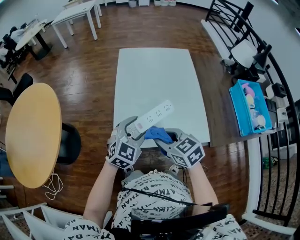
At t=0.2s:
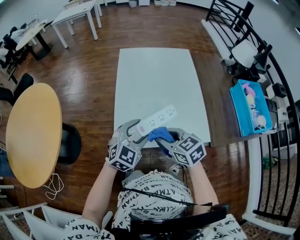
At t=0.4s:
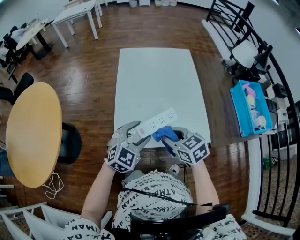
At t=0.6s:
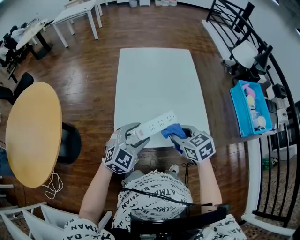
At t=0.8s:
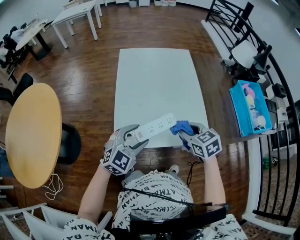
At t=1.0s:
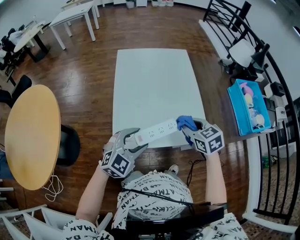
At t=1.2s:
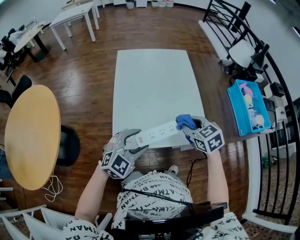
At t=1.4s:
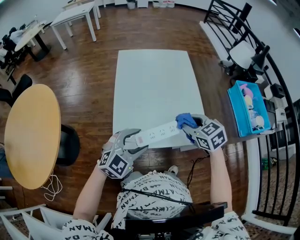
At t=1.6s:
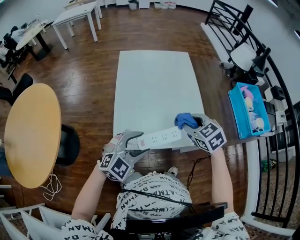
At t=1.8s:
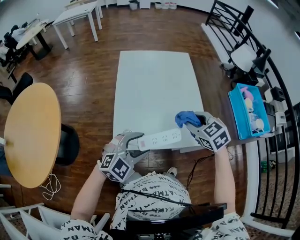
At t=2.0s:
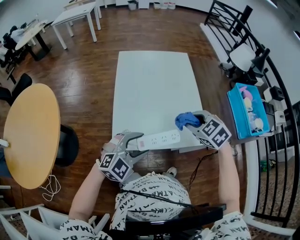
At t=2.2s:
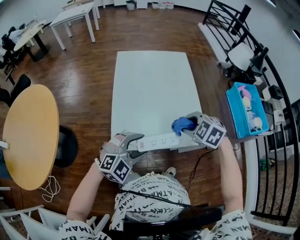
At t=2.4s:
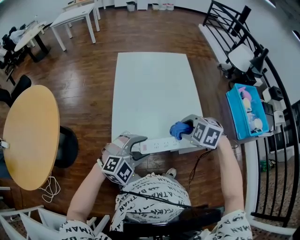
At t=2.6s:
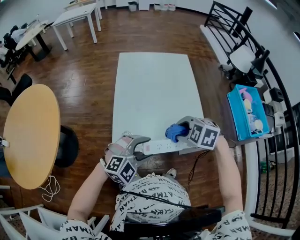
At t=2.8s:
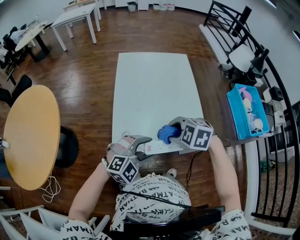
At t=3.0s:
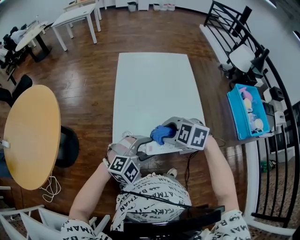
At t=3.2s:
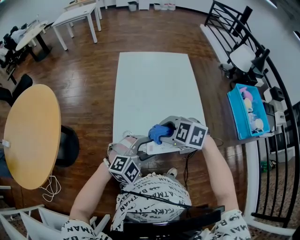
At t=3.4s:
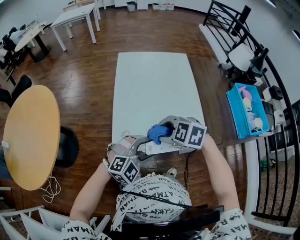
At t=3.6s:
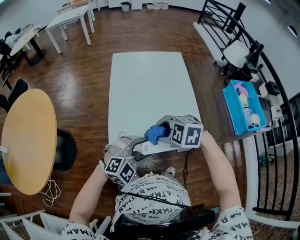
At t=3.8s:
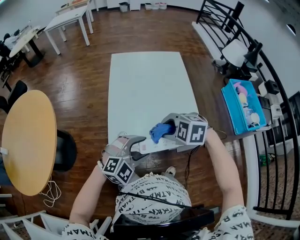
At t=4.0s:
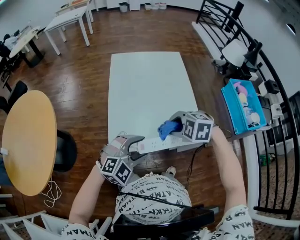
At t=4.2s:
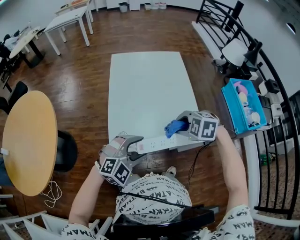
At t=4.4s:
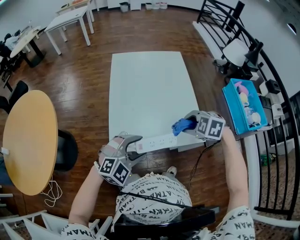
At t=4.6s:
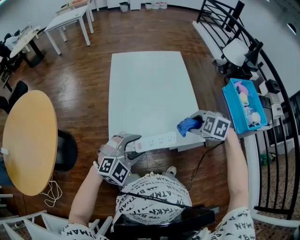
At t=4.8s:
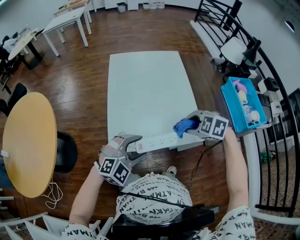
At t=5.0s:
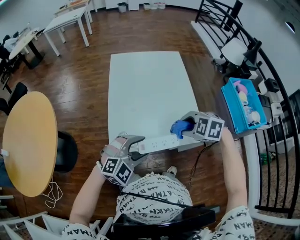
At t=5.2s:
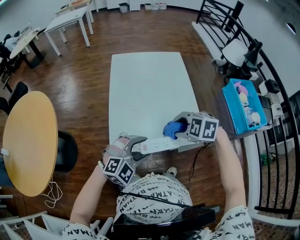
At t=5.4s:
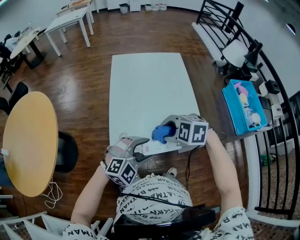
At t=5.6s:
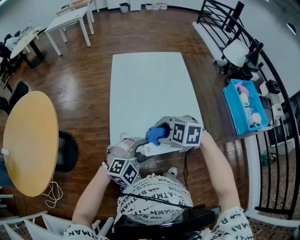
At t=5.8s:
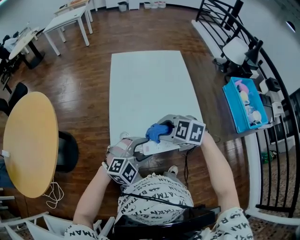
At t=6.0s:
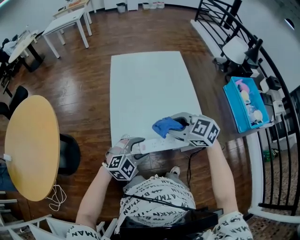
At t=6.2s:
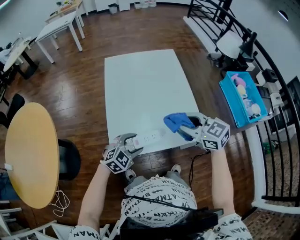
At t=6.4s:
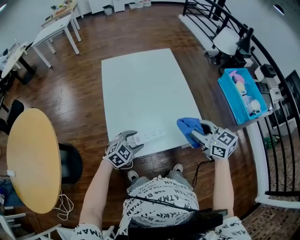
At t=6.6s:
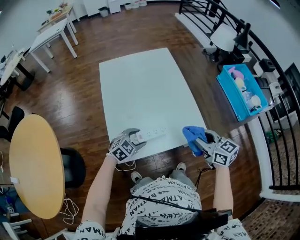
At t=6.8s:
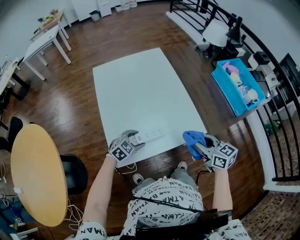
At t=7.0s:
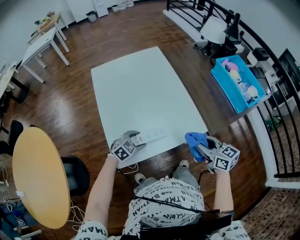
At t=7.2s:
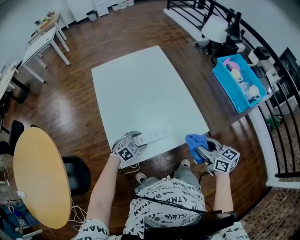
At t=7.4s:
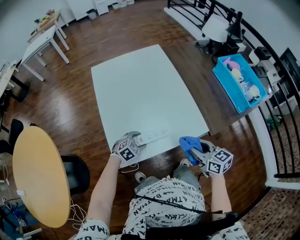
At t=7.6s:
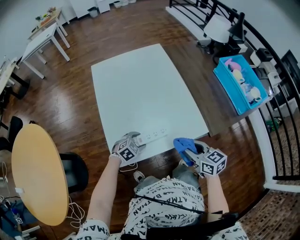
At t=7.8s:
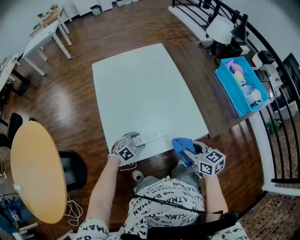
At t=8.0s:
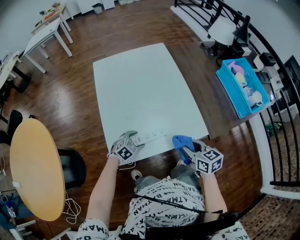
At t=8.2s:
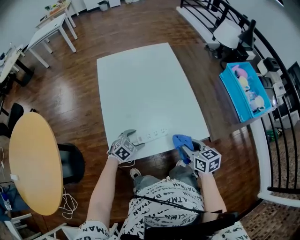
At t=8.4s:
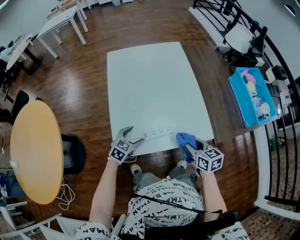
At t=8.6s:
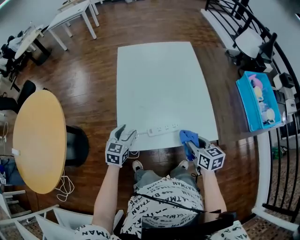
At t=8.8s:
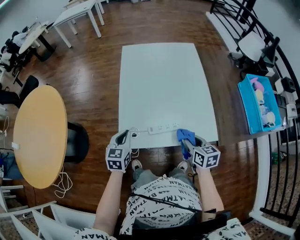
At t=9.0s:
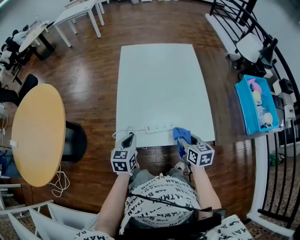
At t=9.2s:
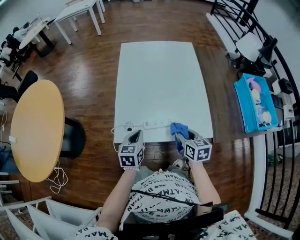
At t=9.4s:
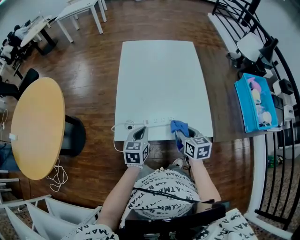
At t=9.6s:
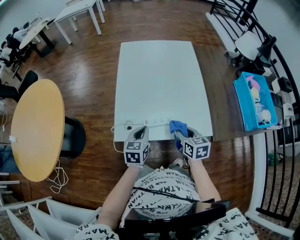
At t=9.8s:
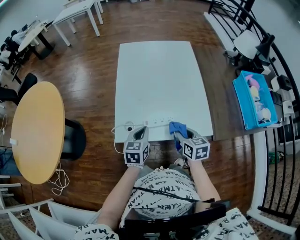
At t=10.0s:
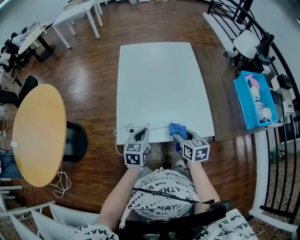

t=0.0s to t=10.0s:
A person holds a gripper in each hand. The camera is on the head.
t=0.0s to t=1.4s: The right gripper moves to the right and forward, about 15 cm, while the left gripper travels backward by approximately 5 cm.
t=1.4s to t=2.8s: The right gripper shifts some 10 cm to the left and backward, and swivels roughly 40 degrees.
t=2.8s to t=4.2s: The right gripper shifts by approximately 5 cm.
t=4.2s to t=5.8s: The right gripper shifts by some 10 cm.
t=5.8s to t=7.2s: The right gripper ends up some 20 cm from where it was, and changes its angle by about 70 degrees. Meanwhile the left gripper shifts about 20 cm downward, and rotates some 30 degrees.
t=7.2s to t=8.6s: The right gripper heads downward and to the left, covering approximately 10 cm, while the left gripper is displaced to the left and upward by roughly 15 cm, and rotates roughly 60 degrees.
t=8.6s to t=10.0s: The left gripper shifts about 10 cm to the right and backward, and closes its fingers.

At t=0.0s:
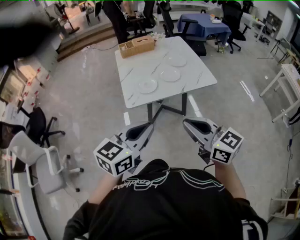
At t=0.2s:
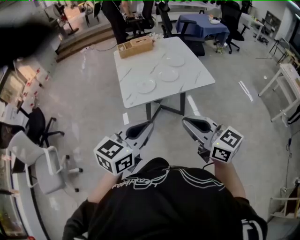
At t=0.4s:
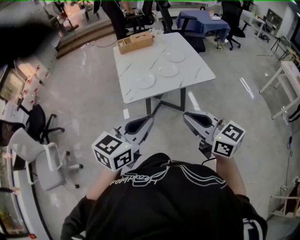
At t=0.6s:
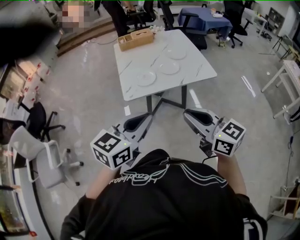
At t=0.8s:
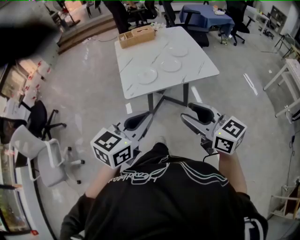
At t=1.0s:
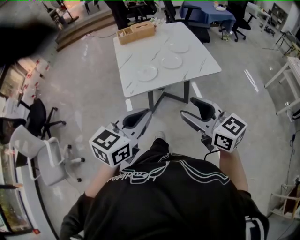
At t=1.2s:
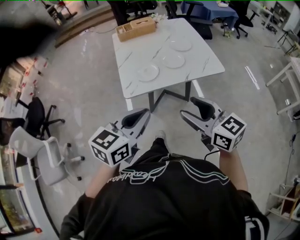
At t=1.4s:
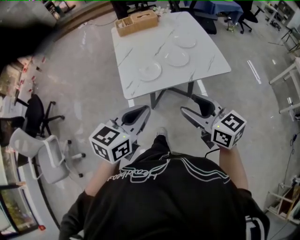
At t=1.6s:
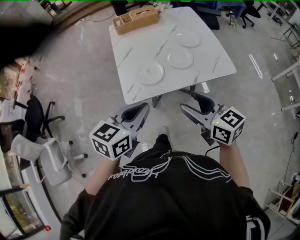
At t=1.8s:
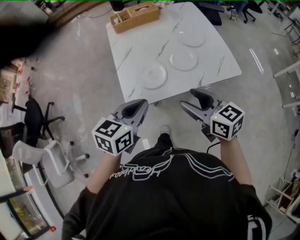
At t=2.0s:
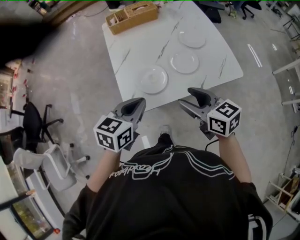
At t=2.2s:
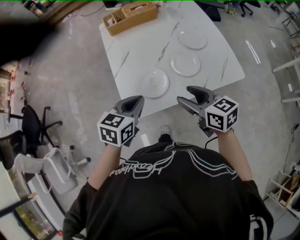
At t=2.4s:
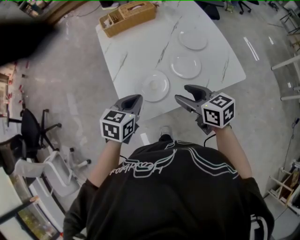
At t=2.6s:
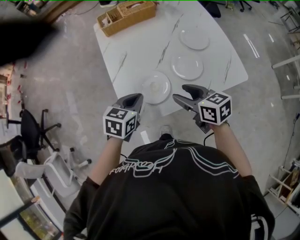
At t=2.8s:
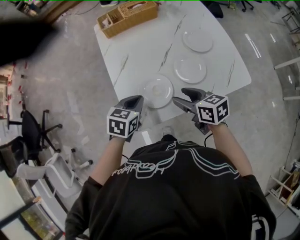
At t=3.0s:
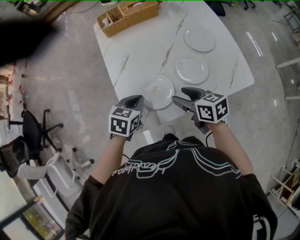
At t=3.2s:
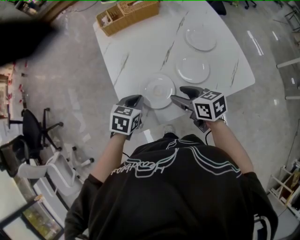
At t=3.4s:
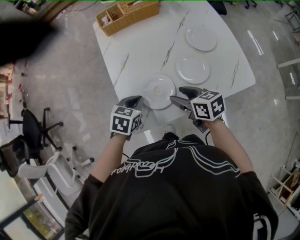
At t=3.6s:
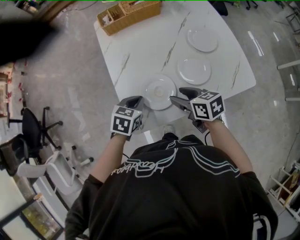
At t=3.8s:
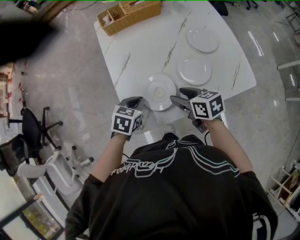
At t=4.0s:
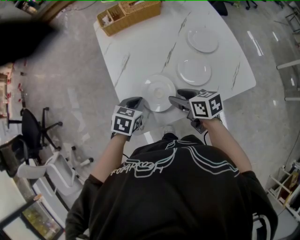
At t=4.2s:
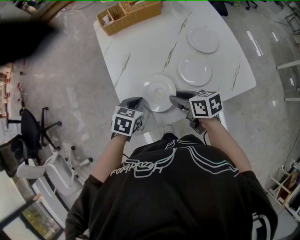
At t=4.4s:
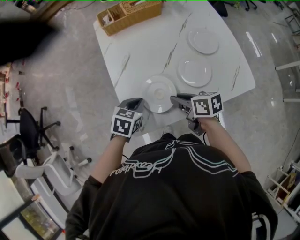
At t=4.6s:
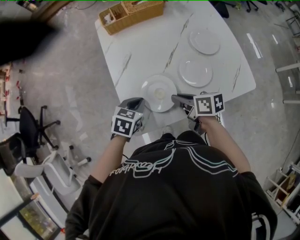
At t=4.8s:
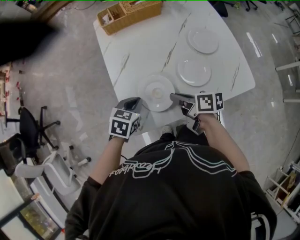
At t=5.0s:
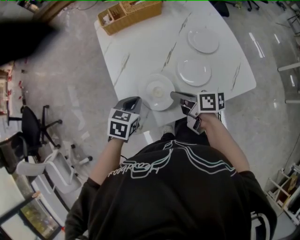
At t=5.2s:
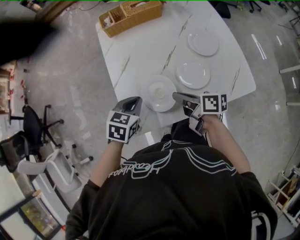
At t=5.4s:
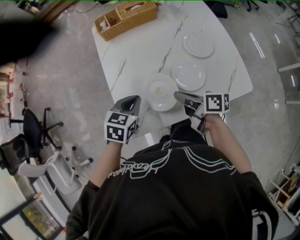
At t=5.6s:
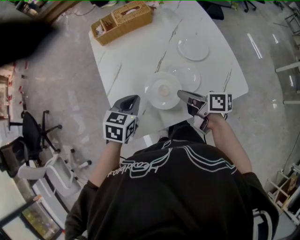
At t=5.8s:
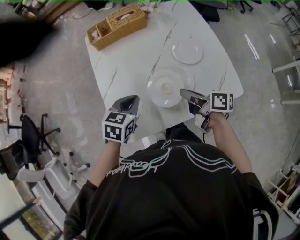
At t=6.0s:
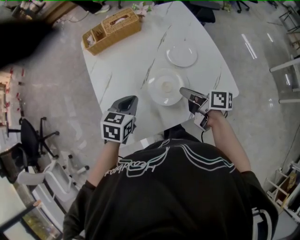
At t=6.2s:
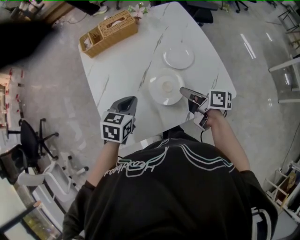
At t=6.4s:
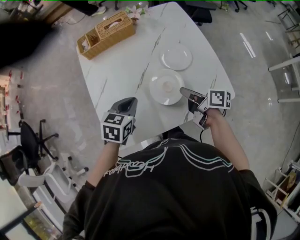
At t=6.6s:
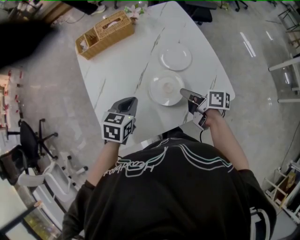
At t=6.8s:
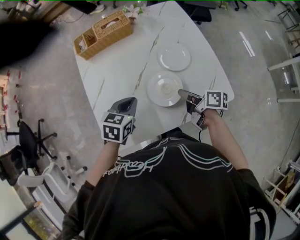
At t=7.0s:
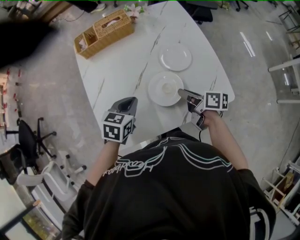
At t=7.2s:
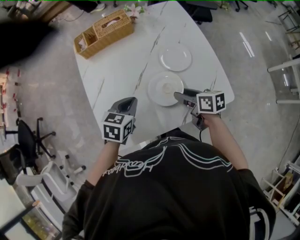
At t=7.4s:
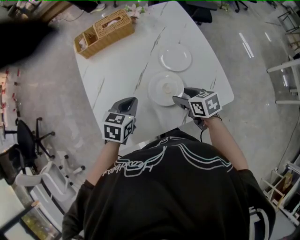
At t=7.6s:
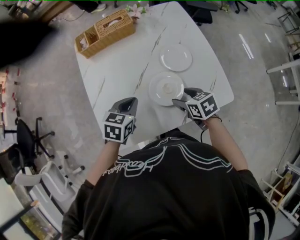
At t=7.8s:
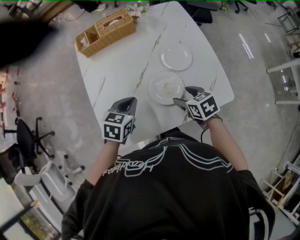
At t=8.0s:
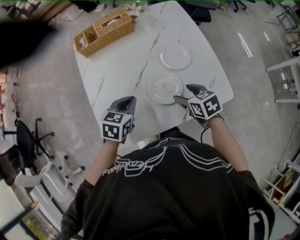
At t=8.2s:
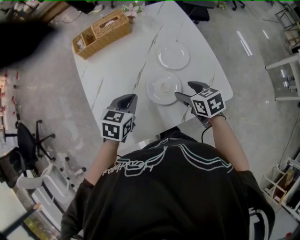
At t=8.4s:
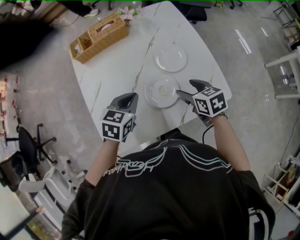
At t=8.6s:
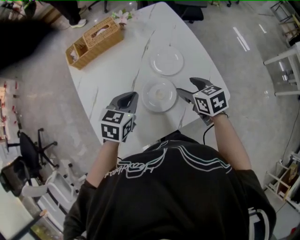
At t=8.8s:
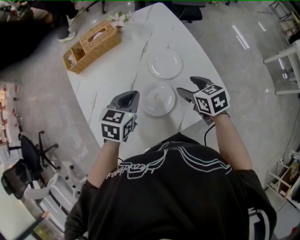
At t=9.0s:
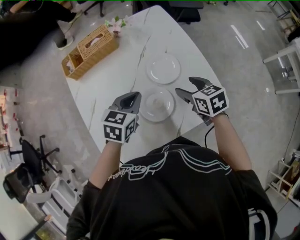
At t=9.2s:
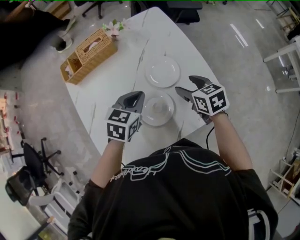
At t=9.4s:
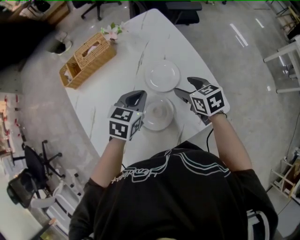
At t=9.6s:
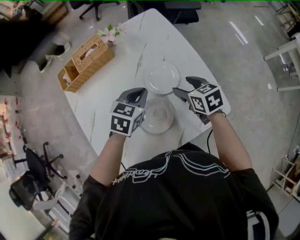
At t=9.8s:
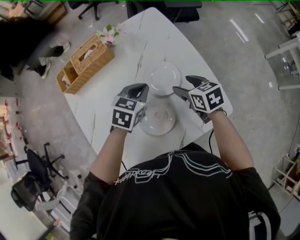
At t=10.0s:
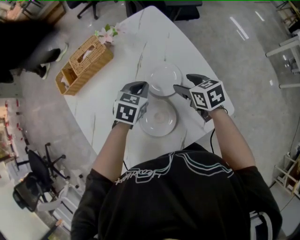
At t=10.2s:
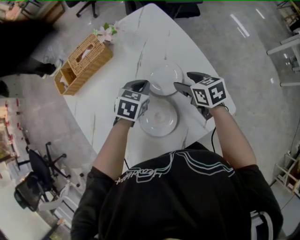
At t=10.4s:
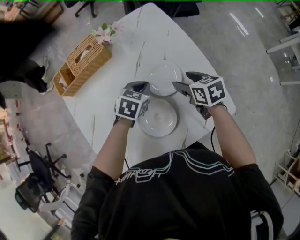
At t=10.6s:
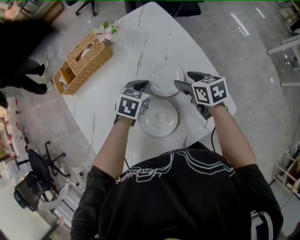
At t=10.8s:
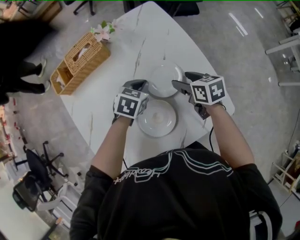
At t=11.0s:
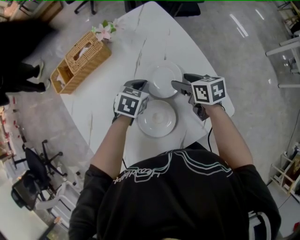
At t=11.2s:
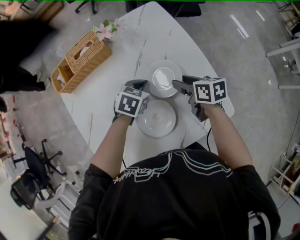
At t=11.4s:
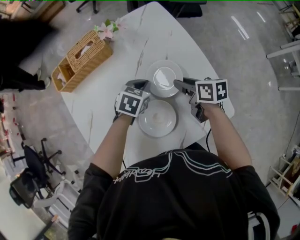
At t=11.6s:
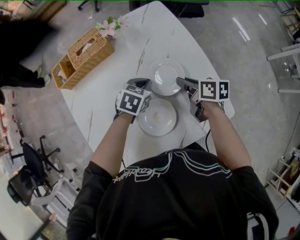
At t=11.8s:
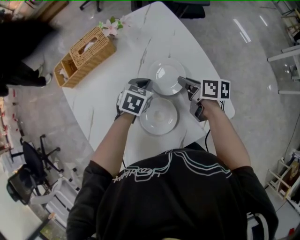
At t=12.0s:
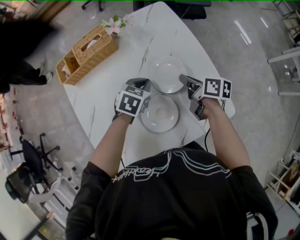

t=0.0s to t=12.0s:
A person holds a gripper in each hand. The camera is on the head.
t=0.0s to t=1.6s: Both grippers move forward and downward, roughly 20 cm. The right gripper opens its fingers.
t=1.6s to t=3.0s: The grippers both shift forward and downward by approximately 30 cm. The right gripper changes its angle by approximately 20 degrees, while the left gripper rotates approximately 30 degrees.
t=3.0s to t=4.4s: The right gripper closes up.
t=4.4s to t=6.0s: Both grippers move to the right and upward, roughly 15 cm. The right gripper rotates roughly 20 degrees.
t=6.0s to t=7.6s: The right gripper is displaced downward by approximately 5 cm, tips its fingers downward by some 30 degrees, and opens its fingers.
t=7.6s to t=9.0s: The left gripper goes roughly 10 cm to the right and forward; the right gripper shifts roughly 10 cm forward and to the right.
t=9.0s to t=10.4s: The left gripper shifts some 15 cm forward, downward and to the right, while the right gripper heads forward and downward, covering about 10 cm.
t=10.4s to t=12.0s: The right gripper changes its angle by approximately 40 degrees, and closes its fingers.

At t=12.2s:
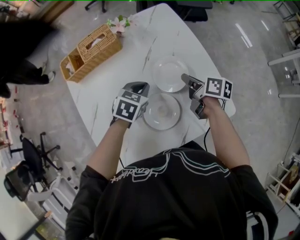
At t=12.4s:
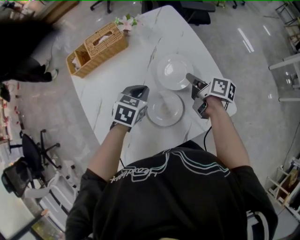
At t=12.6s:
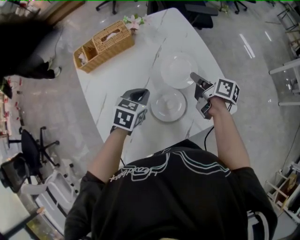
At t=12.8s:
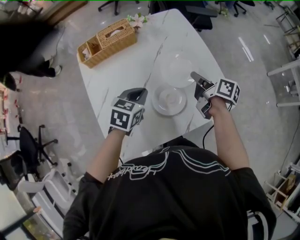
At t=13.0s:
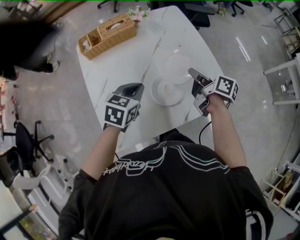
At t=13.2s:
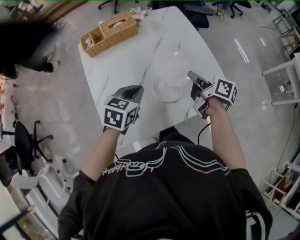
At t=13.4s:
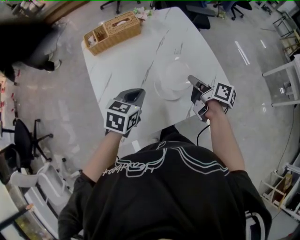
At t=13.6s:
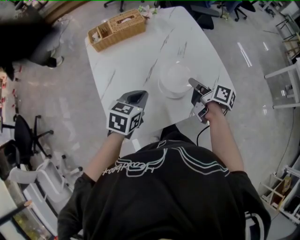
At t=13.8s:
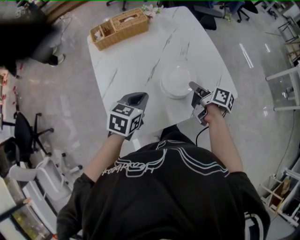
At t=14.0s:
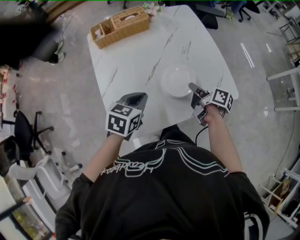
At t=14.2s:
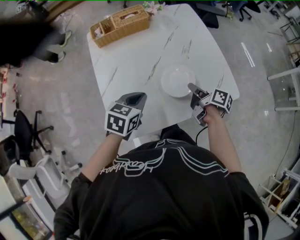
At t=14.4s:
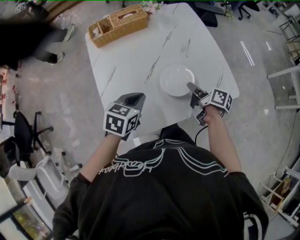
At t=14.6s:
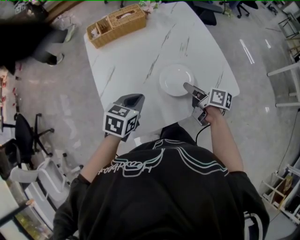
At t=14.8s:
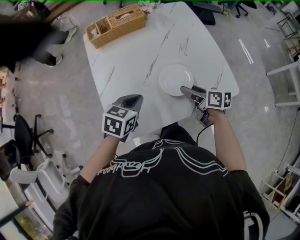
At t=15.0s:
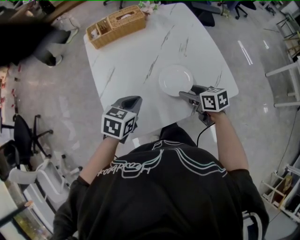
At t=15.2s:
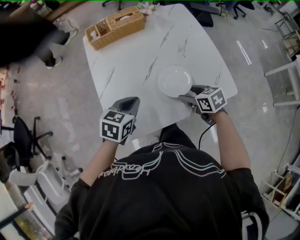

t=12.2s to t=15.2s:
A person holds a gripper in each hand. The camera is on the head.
t=12.2s to t=13.8s: The left gripper goes roughly 25 cm backward and to the left, while the right gripper heads backward, covering roughly 15 cm.
t=13.8s to t=15.2s: The right gripper shifts by approximately 5 cm, twists about 50 degrees counterclockwise, seen from behind, and opens.
